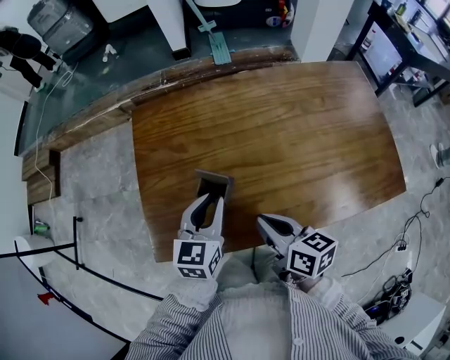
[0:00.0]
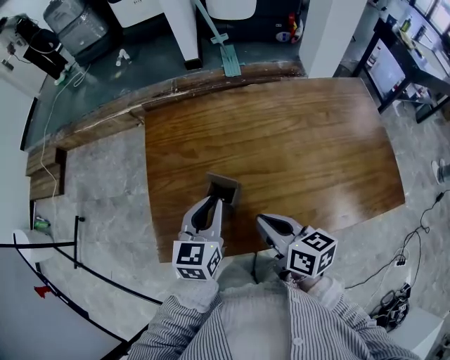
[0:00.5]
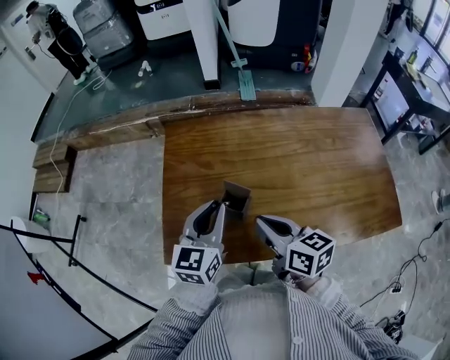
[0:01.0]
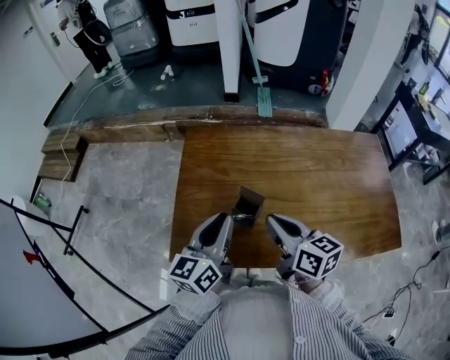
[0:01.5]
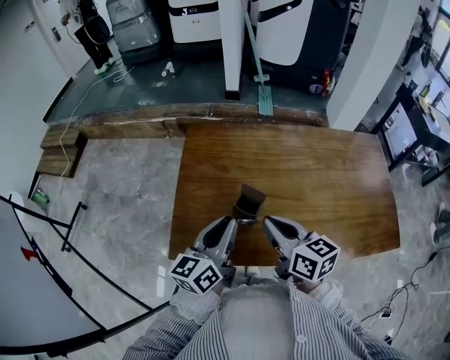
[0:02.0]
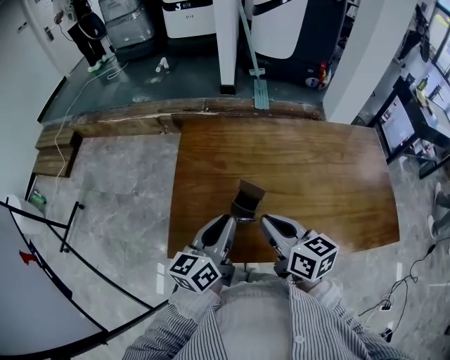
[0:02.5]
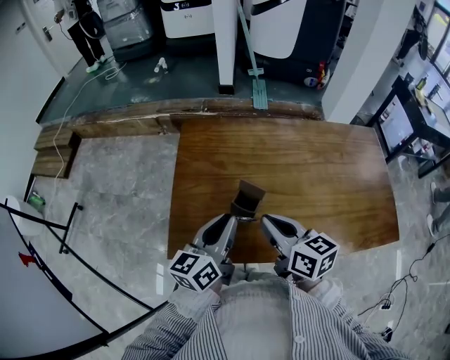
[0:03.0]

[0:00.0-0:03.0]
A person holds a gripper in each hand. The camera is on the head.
0:00.0 to 0:01.5: The left gripper shifts approximately 10 cm upward and to the left, and turns by roughly 30 degrees. The right gripper is displaced upward by approximately 10 cm.
0:01.5 to 0:03.0: The grippers stay close to where they were, moving slightly.

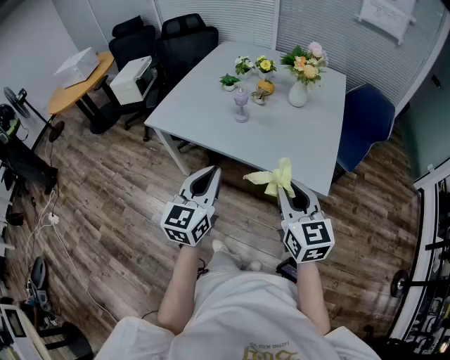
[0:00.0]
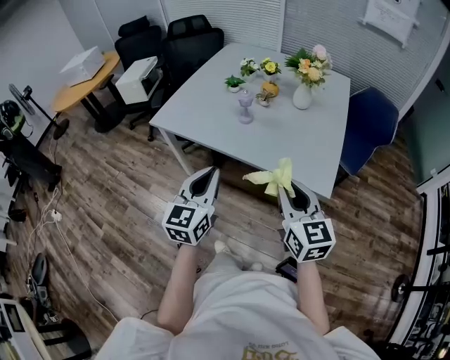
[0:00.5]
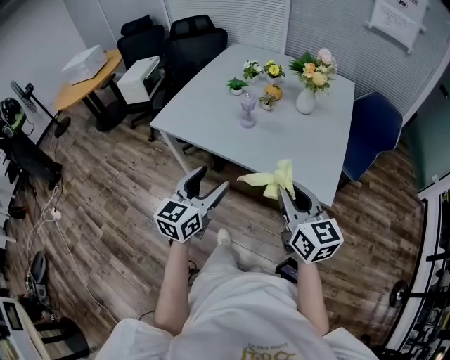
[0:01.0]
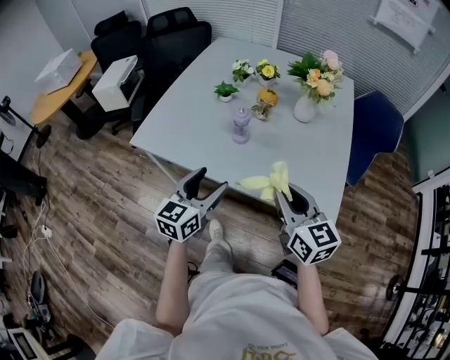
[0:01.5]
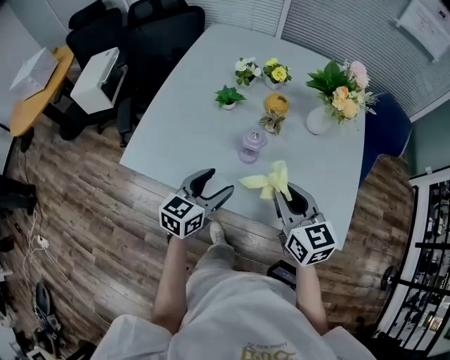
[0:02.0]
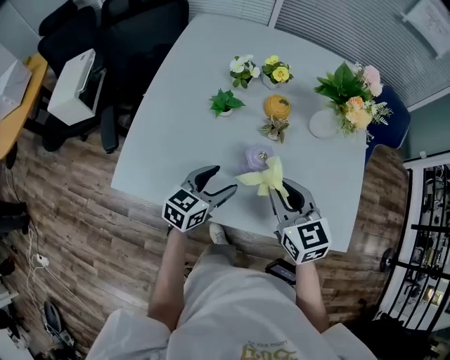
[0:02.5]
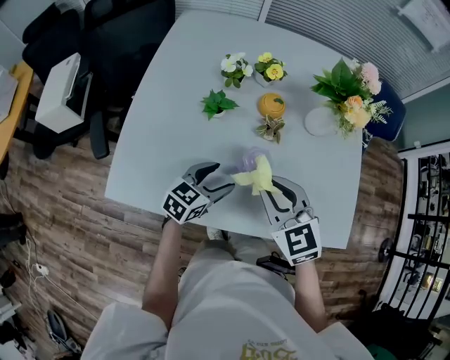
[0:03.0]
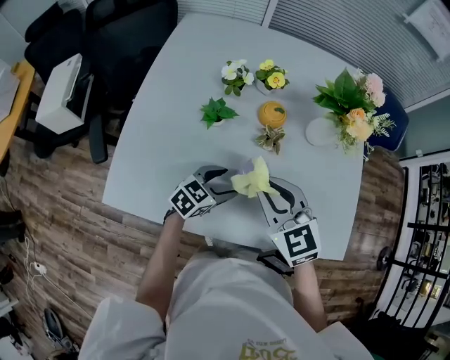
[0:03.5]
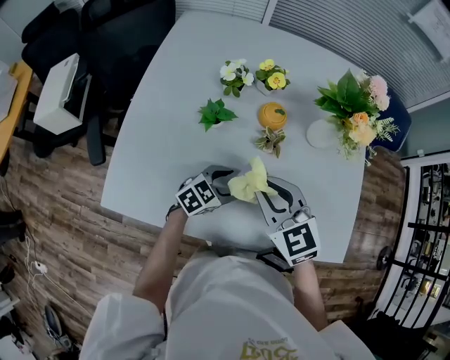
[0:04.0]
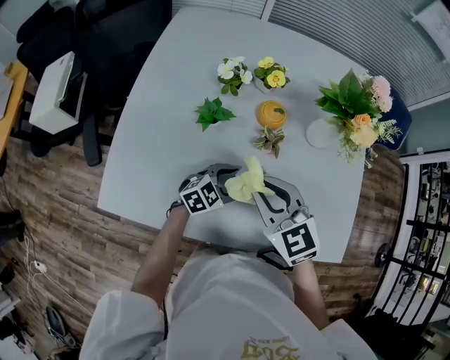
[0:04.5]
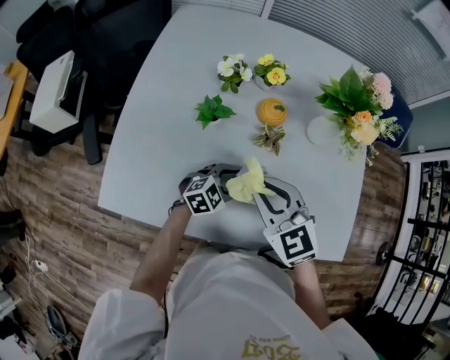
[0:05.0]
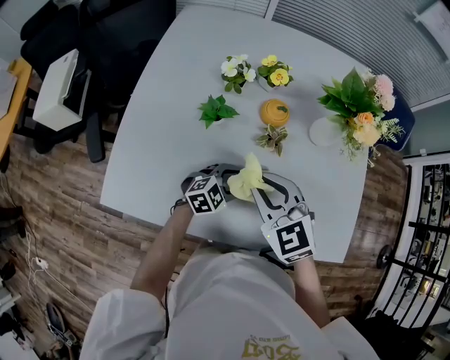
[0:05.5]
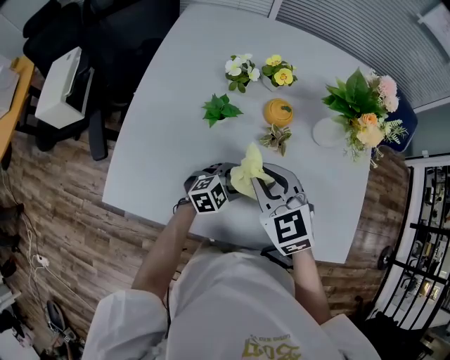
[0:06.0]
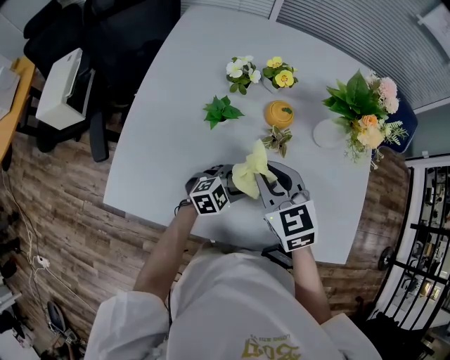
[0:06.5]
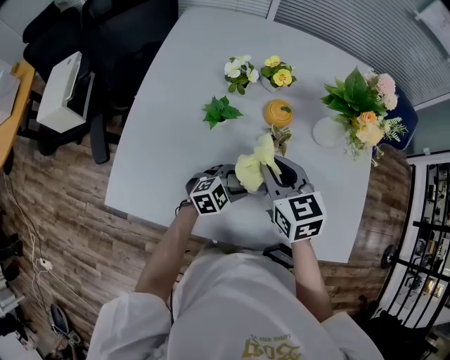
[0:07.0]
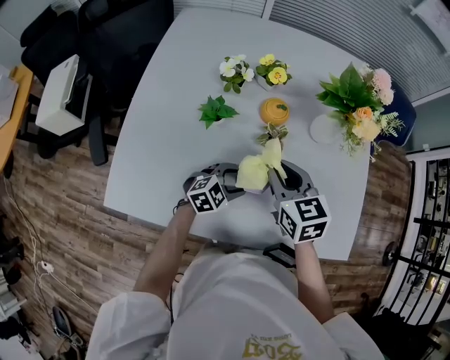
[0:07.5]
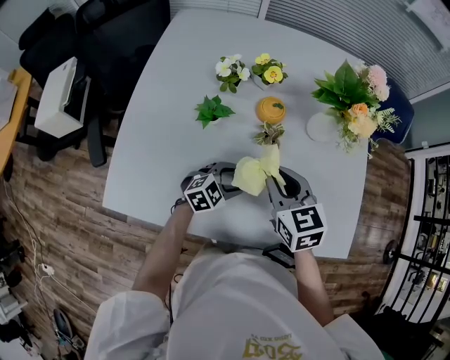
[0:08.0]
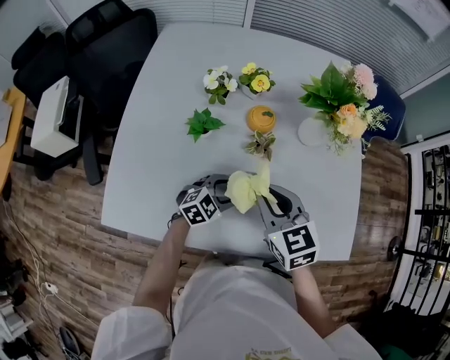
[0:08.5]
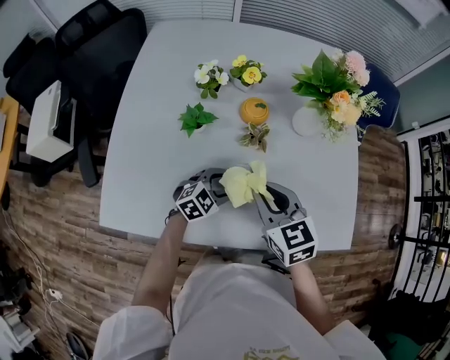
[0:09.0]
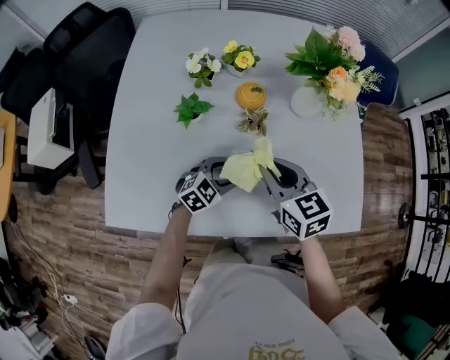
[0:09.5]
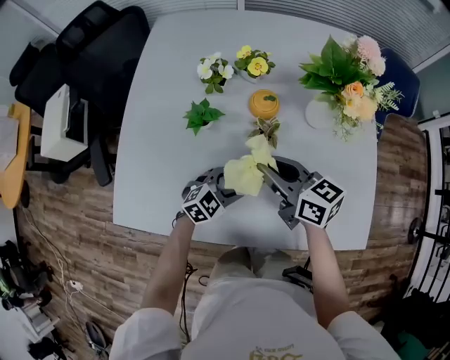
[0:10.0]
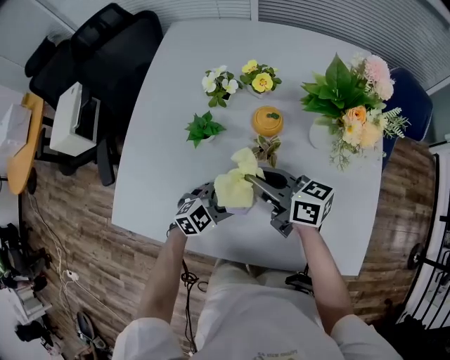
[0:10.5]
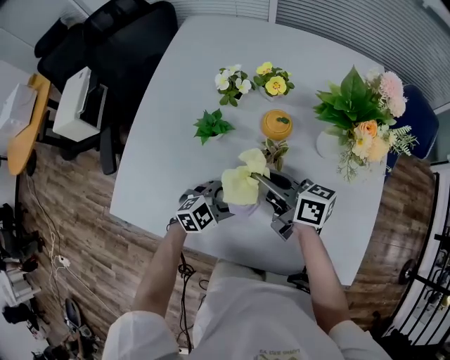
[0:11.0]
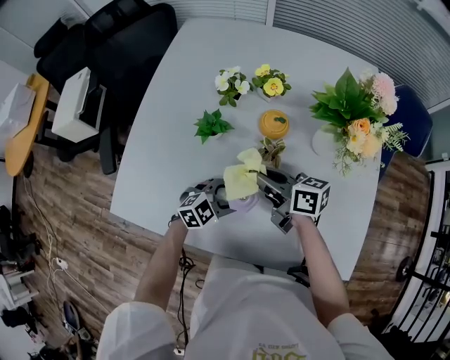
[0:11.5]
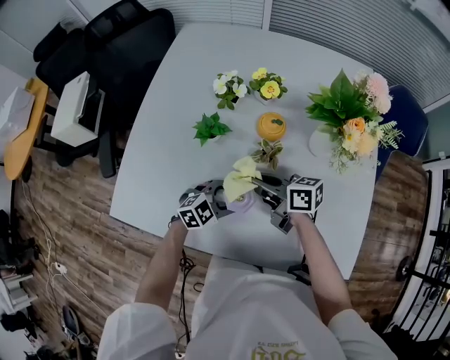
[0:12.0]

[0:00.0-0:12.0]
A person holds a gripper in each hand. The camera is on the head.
0:00.0 to 0:02.0: The right gripper heads forward, covering roughly 30 cm; the left gripper is displaced forward and downward by roughly 35 cm, rotates some 30 degrees, and opens up.
0:02.0 to 0:04.0: The left gripper is displaced downward and forward by about 20 cm, and turns by roughly 40 degrees, while the right gripper moves forward and to the left, approximately 15 cm, and swivels approximately 20 degrees.
0:04.0 to 0:06.0: The grippers stay close to where they were, moving slightly.
0:06.0 to 0:08.0: The right gripper travels to the right by roughly 5 cm, and rotates roughly 20 degrees.
0:08.0 to 0:10.0: The right gripper turns by approximately 30 degrees.
0:10.0 to 0:12.0: The right gripper heads downward, covering about 5 cm, and turns by about 30 degrees.

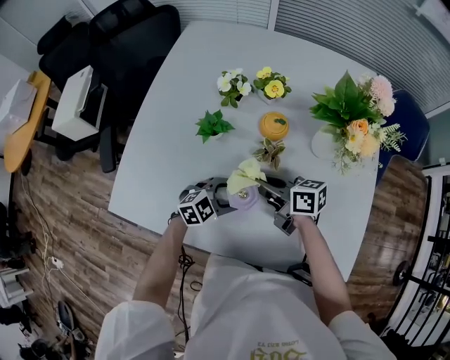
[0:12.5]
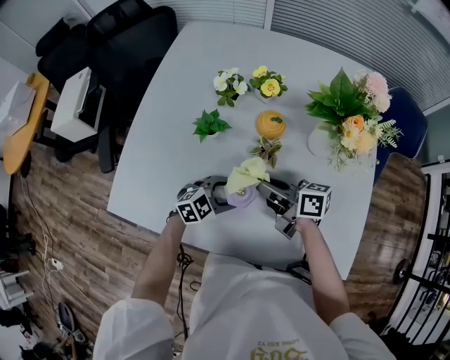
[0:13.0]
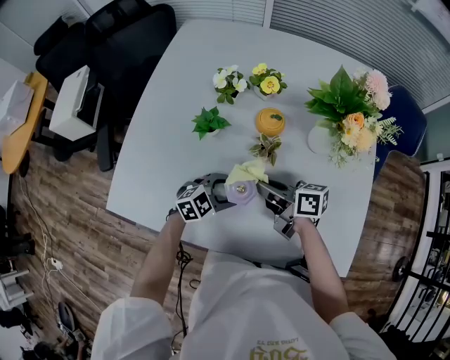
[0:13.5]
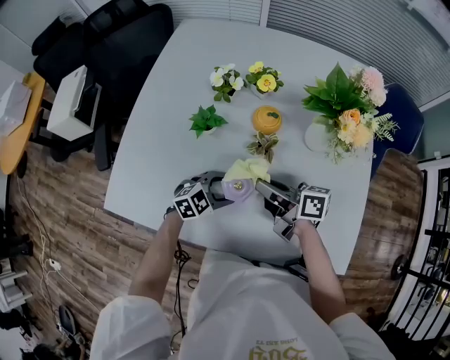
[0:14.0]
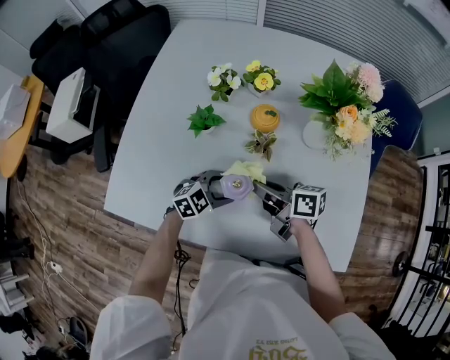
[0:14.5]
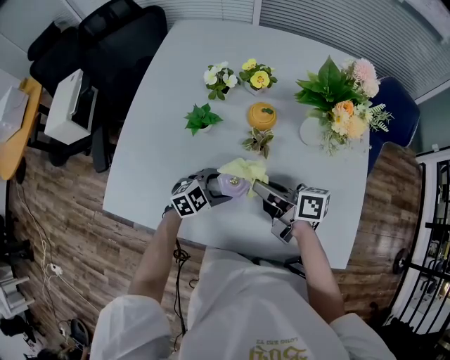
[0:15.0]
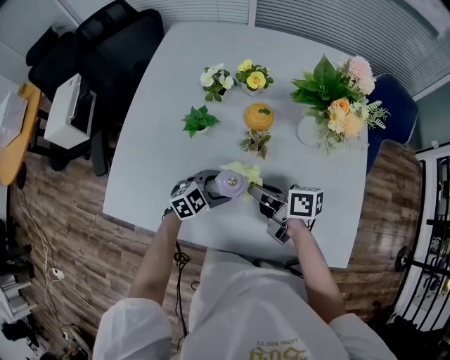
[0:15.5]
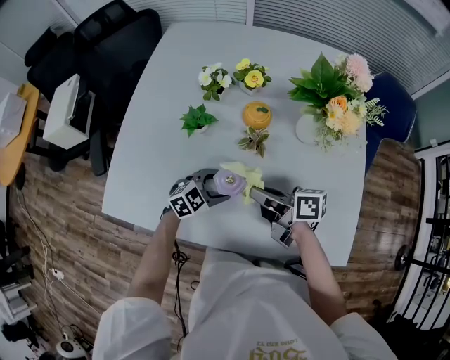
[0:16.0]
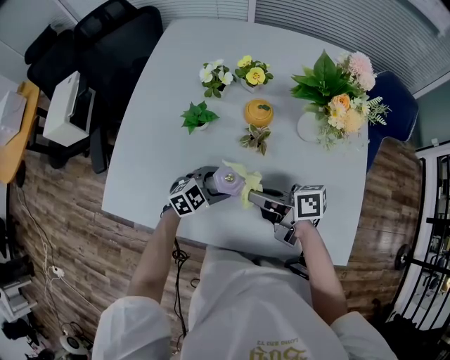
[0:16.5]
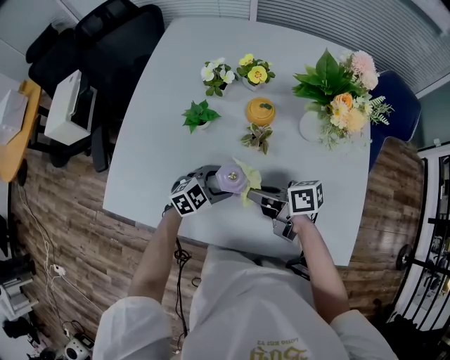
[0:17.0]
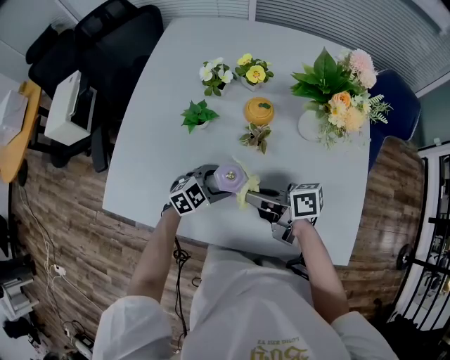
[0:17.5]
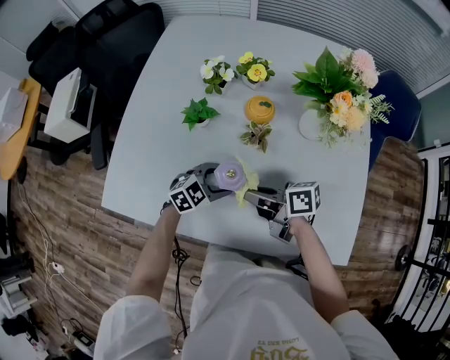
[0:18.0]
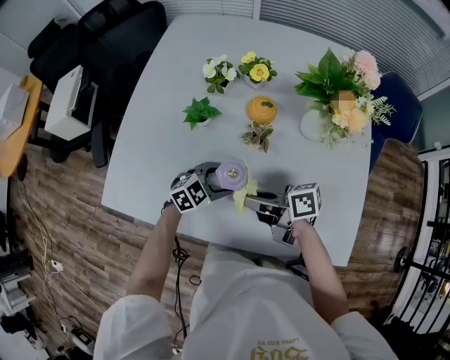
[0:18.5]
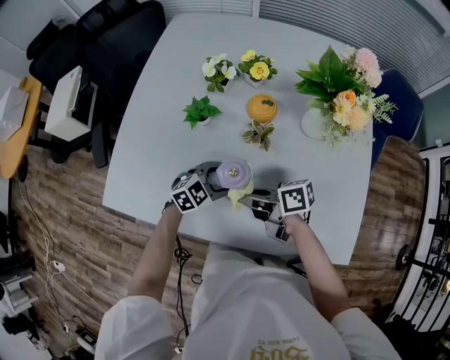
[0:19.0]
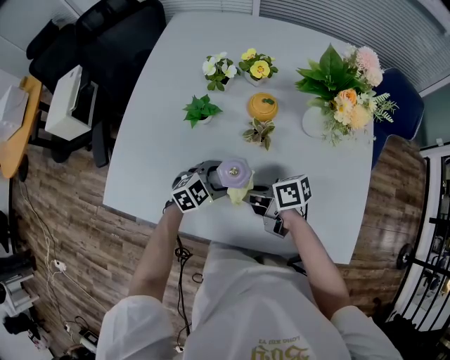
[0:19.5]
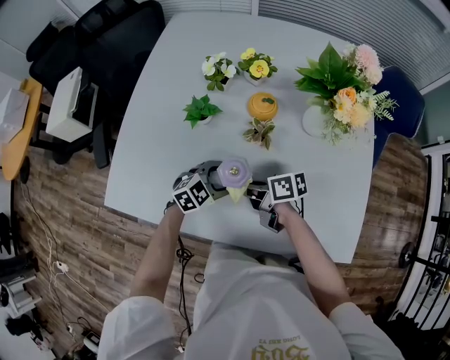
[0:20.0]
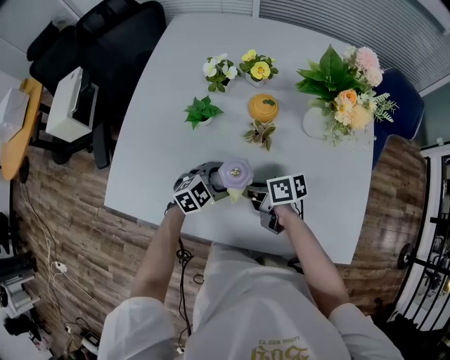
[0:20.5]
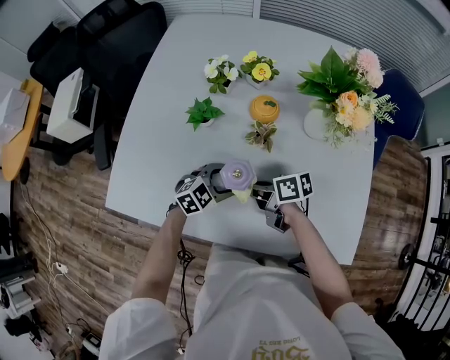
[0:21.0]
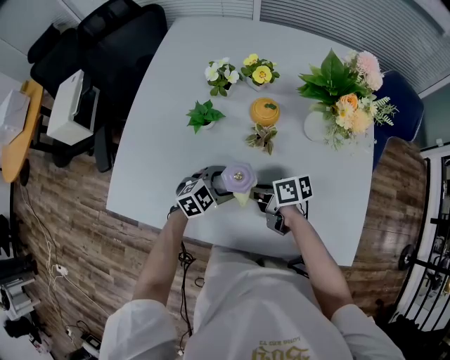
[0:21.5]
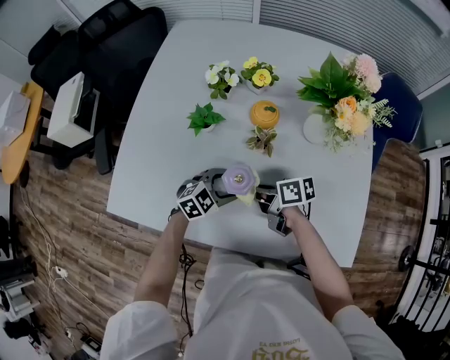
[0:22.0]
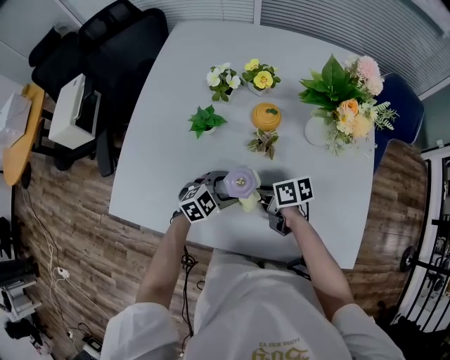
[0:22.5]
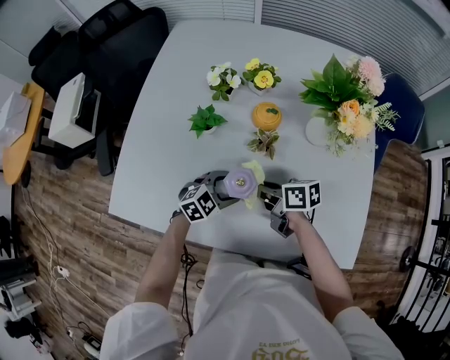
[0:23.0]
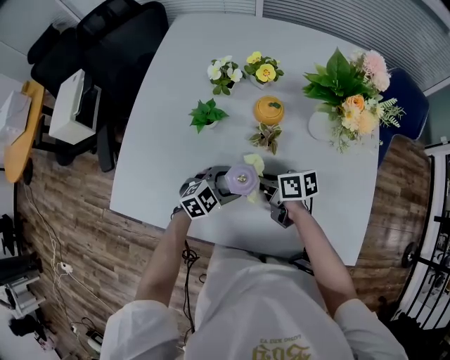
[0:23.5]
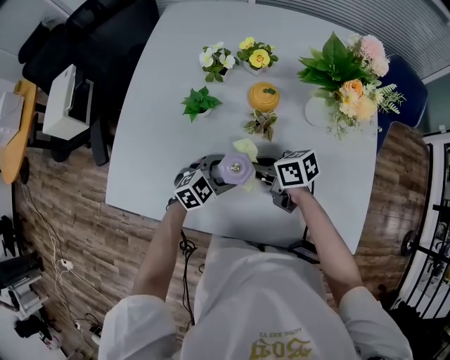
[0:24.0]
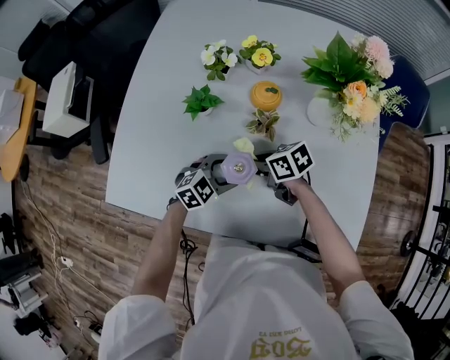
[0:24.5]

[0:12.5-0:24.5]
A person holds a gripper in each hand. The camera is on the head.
0:12.5 to 0:14.5: The grippers make only small movements.
0:14.5 to 0:16.5: The grippers move only a little.
0:16.5 to 0:18.5: The grippers move only a little.
0:18.5 to 0:20.5: The right gripper heads downward, covering roughly 10 cm.
0:20.5 to 0:22.5: The grippers move only a little.
0:22.5 to 0:24.5: There are only small adjustments of the grippers.
